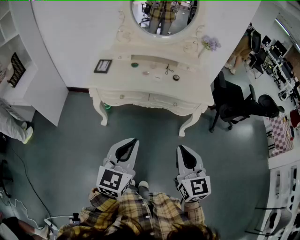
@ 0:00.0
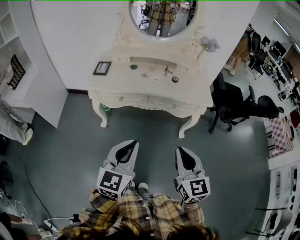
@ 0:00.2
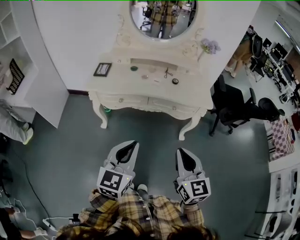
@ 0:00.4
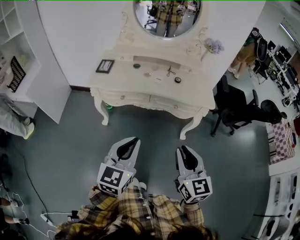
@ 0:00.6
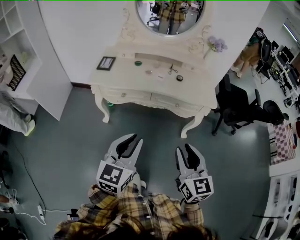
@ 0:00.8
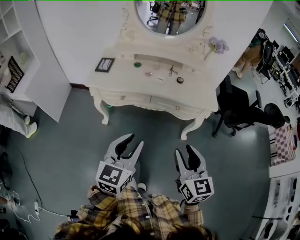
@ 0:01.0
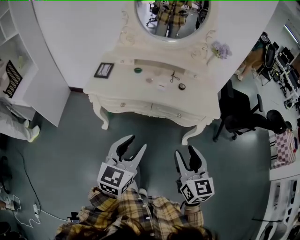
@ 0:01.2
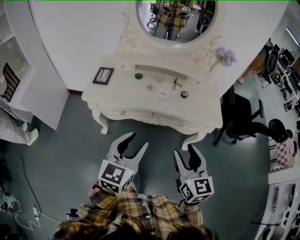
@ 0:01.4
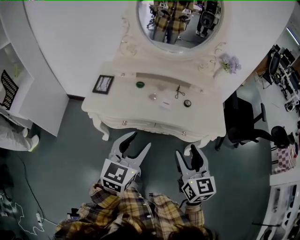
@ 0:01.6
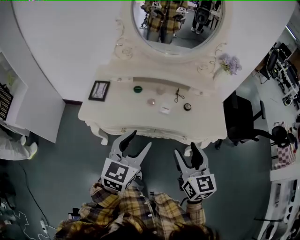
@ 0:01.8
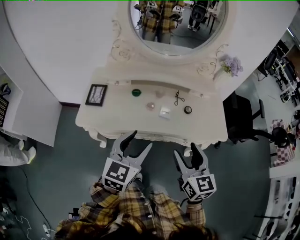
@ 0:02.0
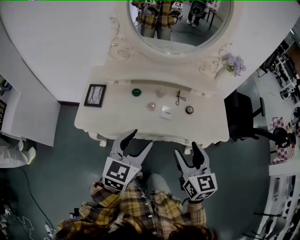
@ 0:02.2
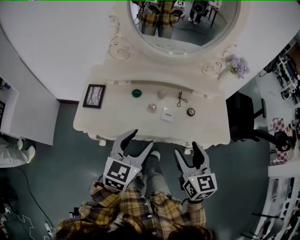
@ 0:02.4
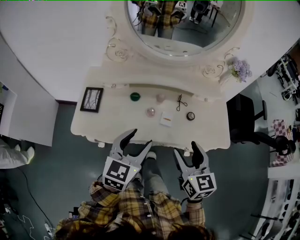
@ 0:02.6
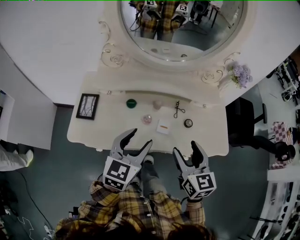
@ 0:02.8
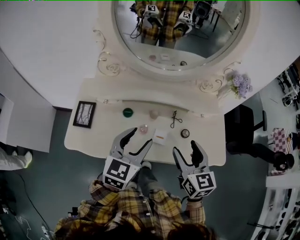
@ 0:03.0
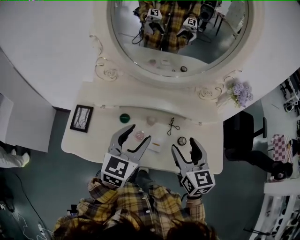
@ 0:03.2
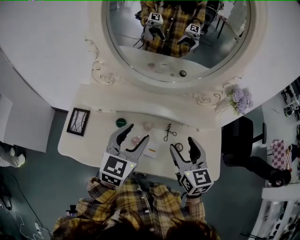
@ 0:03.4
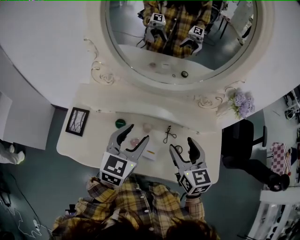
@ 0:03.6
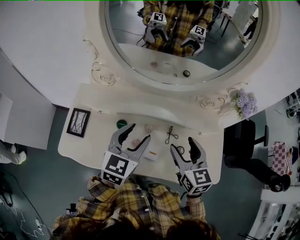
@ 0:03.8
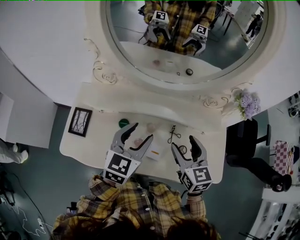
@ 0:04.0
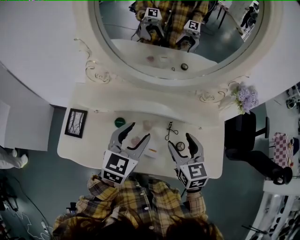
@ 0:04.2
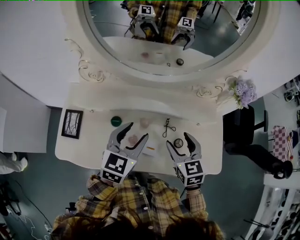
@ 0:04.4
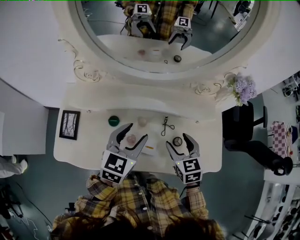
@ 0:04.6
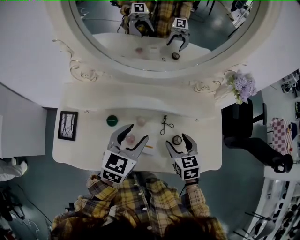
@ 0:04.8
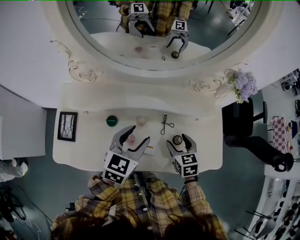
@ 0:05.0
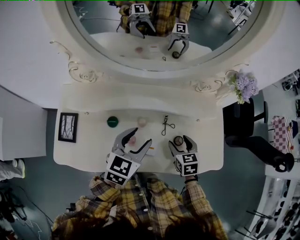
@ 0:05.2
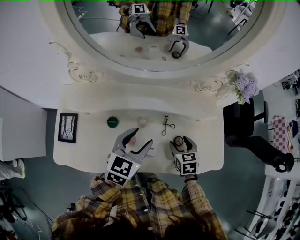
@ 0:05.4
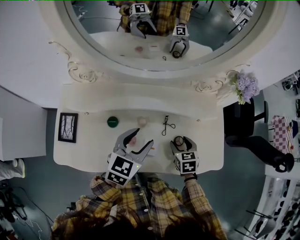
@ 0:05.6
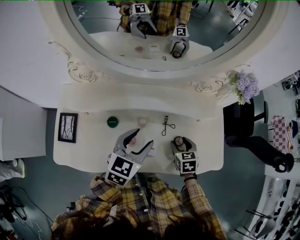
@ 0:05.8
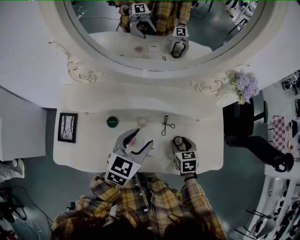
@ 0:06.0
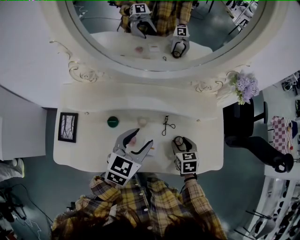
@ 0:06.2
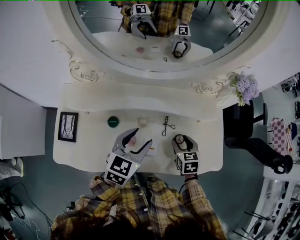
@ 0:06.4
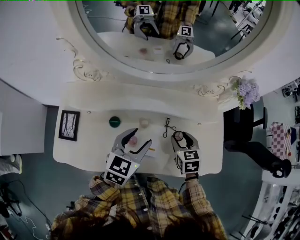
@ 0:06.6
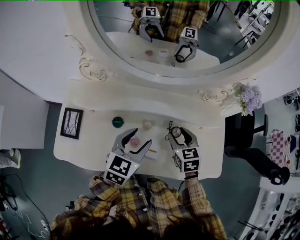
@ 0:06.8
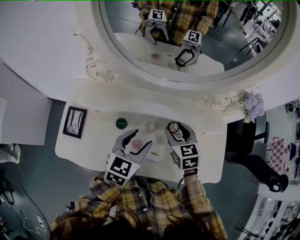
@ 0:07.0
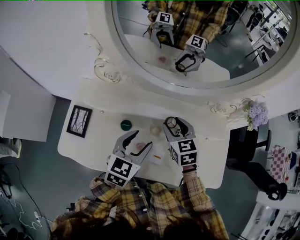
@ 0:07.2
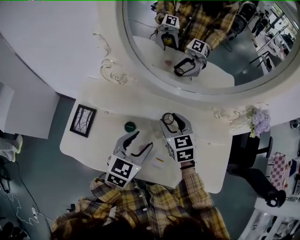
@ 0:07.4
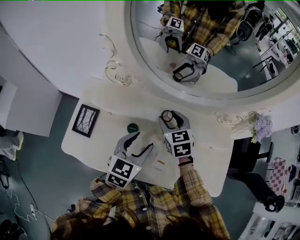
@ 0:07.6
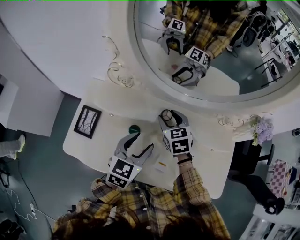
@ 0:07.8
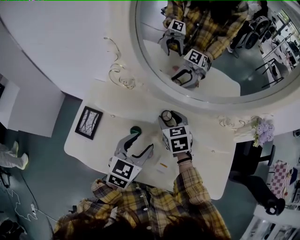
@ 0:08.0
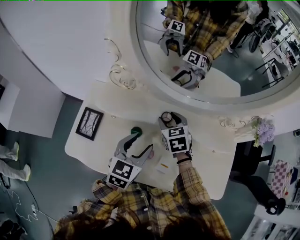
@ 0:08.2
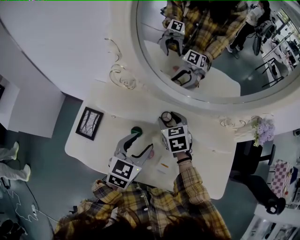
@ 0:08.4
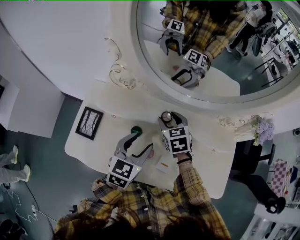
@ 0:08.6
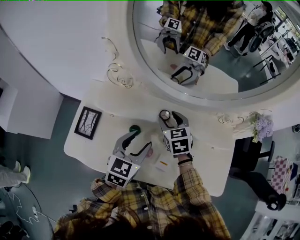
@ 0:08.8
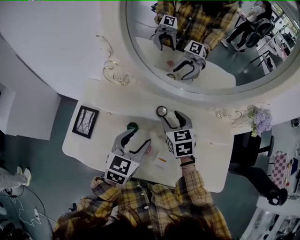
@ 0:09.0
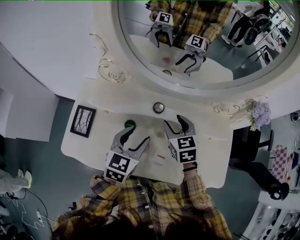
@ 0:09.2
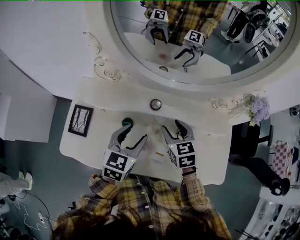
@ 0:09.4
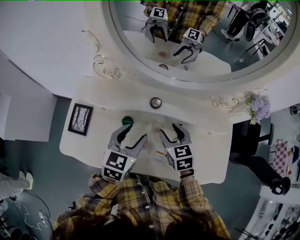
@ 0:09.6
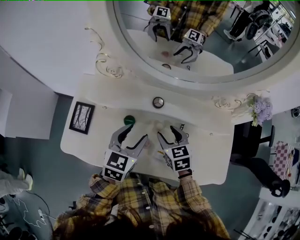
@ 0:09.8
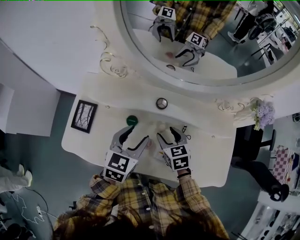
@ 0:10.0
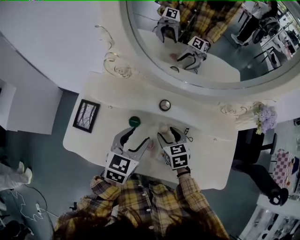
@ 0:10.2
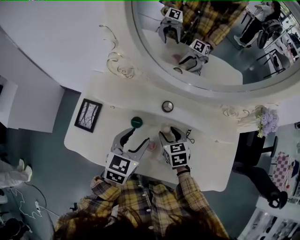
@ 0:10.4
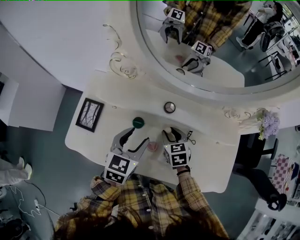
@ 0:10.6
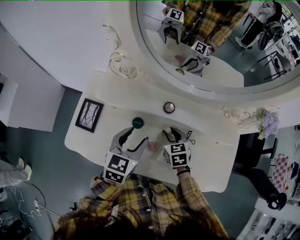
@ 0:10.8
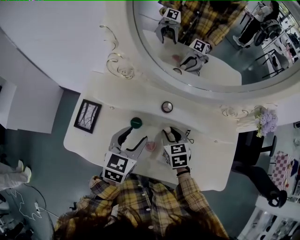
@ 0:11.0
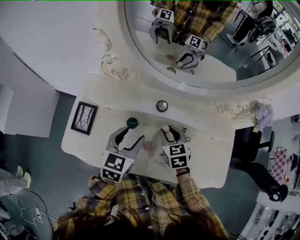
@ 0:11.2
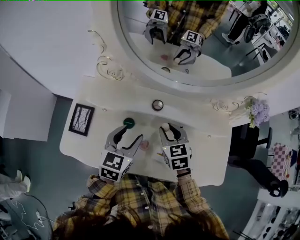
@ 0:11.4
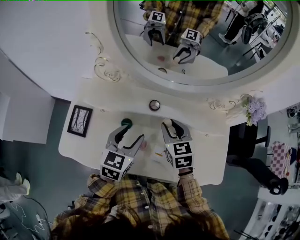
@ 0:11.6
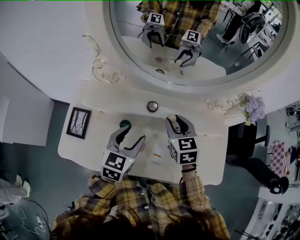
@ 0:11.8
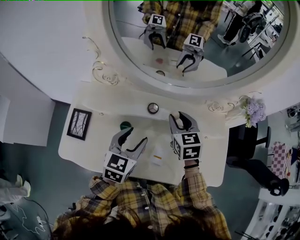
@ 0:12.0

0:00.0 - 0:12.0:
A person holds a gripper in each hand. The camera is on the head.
0:00.0 - 0:01.6: The two grippers go approximately 20 cm forward. The left gripper opens its fingers, while the right gripper opens up.
0:01.6 - 0:03.0: Both grippers move forward, some 25 cm.
0:03.0 - 0:04.4: The right gripper travels forward and downward by approximately 15 cm. The left gripper shifts roughly 10 cm forward.
0:04.4 - 0:06.0: The left gripper changes place by roughly 5 cm. The right gripper moves downward and to the right, about 15 cm, and rotates approximately 20 degrees.
0:06.0 - 0:07.6: The left gripper is displaced to the left by about 10 cm, while the right gripper goes some 30 cm to the left, forward and upward, and changes its angle by roughly 30 degrees.
0:07.6 - 0:09.0: The grippers make only small movements.
0:09.0 - 0:10.4: The right gripper moves downward and backward, about 15 cm.
0:10.4 - 0:12.0: The right gripper shifts roughly 15 cm upward, forward and to the right.

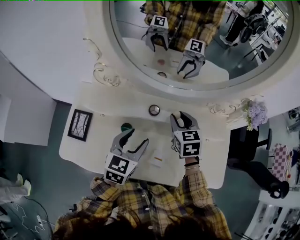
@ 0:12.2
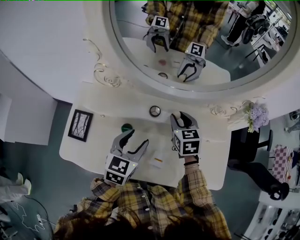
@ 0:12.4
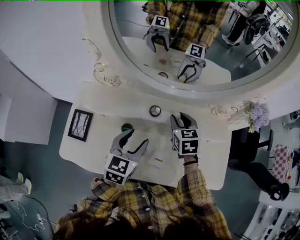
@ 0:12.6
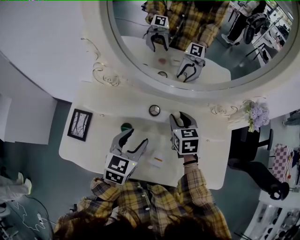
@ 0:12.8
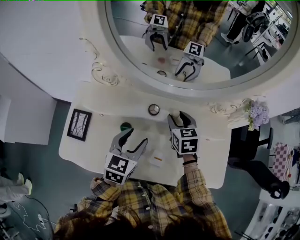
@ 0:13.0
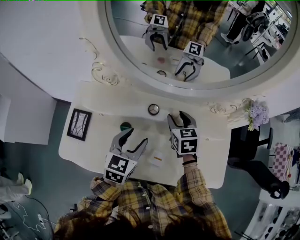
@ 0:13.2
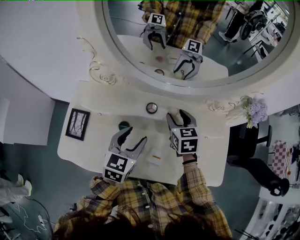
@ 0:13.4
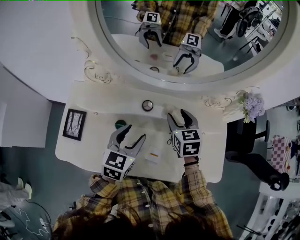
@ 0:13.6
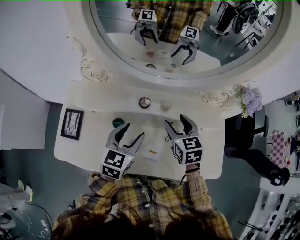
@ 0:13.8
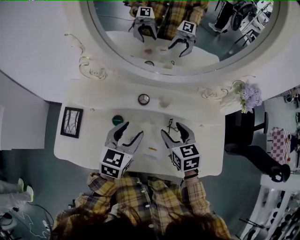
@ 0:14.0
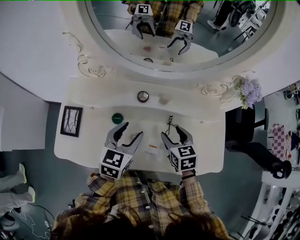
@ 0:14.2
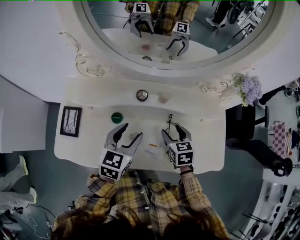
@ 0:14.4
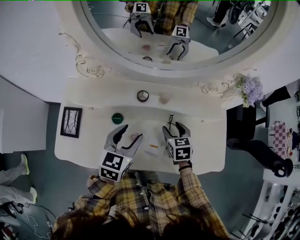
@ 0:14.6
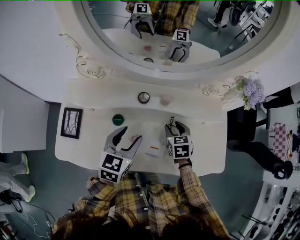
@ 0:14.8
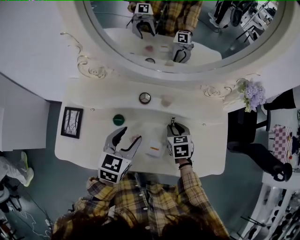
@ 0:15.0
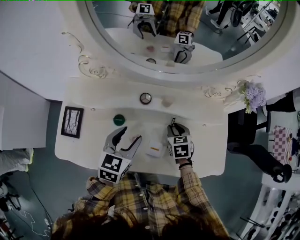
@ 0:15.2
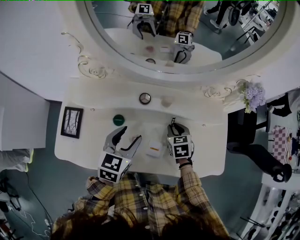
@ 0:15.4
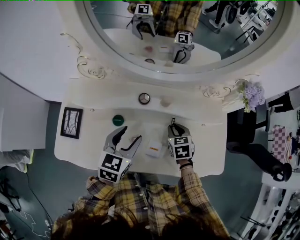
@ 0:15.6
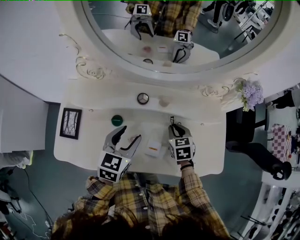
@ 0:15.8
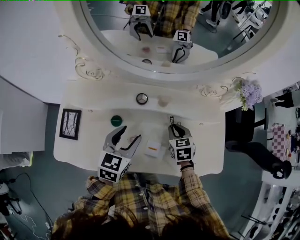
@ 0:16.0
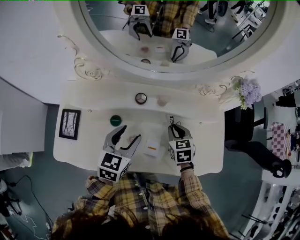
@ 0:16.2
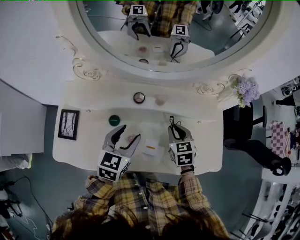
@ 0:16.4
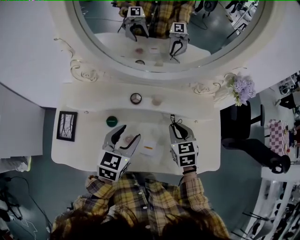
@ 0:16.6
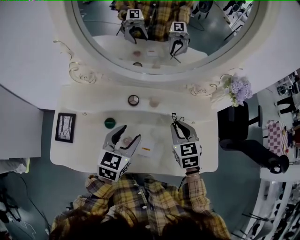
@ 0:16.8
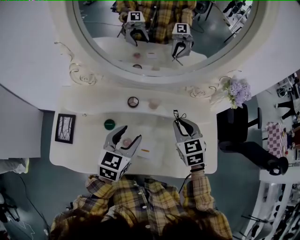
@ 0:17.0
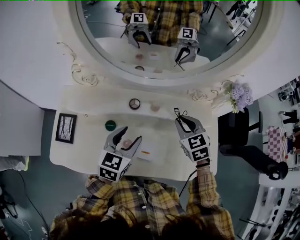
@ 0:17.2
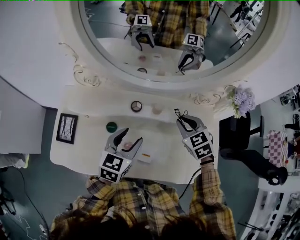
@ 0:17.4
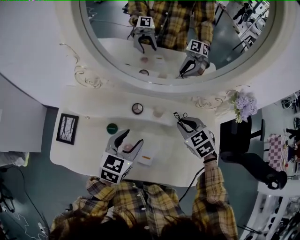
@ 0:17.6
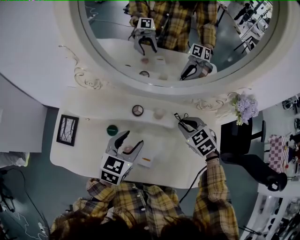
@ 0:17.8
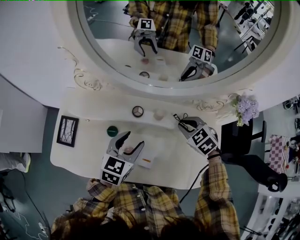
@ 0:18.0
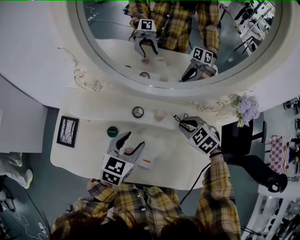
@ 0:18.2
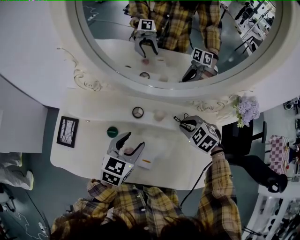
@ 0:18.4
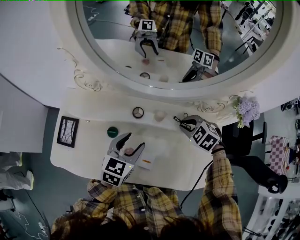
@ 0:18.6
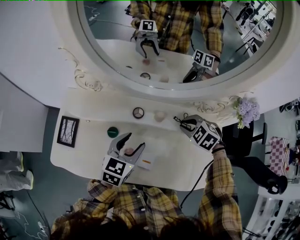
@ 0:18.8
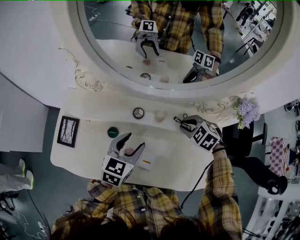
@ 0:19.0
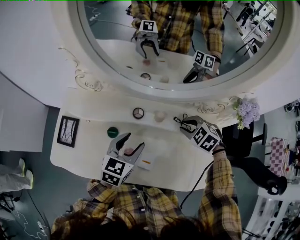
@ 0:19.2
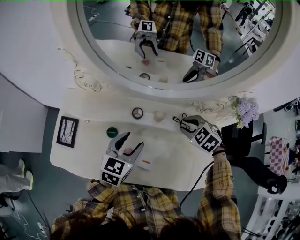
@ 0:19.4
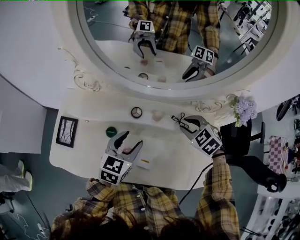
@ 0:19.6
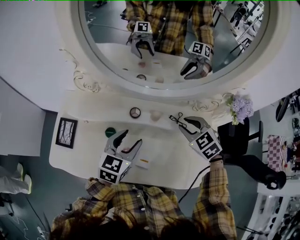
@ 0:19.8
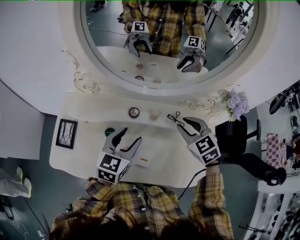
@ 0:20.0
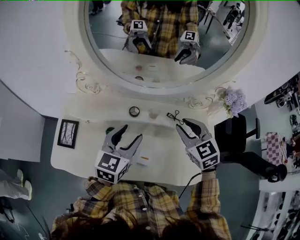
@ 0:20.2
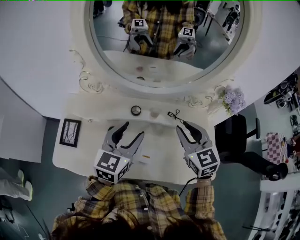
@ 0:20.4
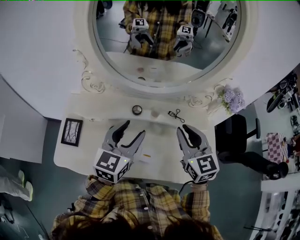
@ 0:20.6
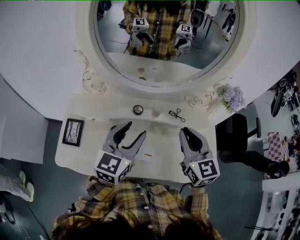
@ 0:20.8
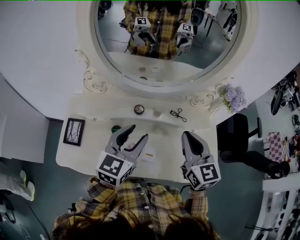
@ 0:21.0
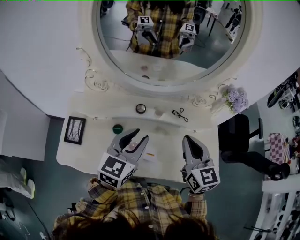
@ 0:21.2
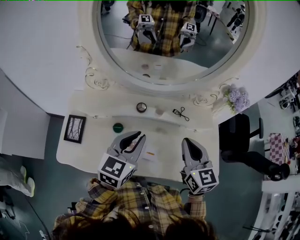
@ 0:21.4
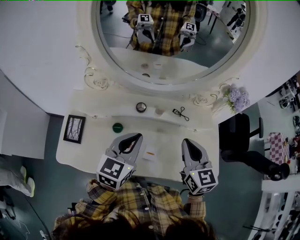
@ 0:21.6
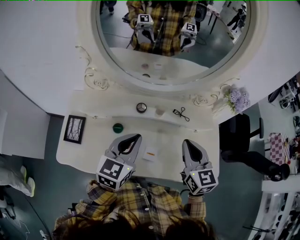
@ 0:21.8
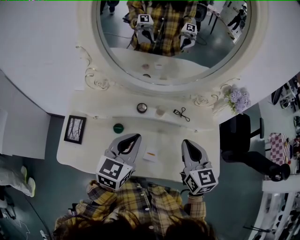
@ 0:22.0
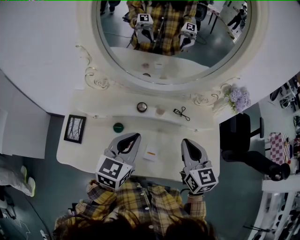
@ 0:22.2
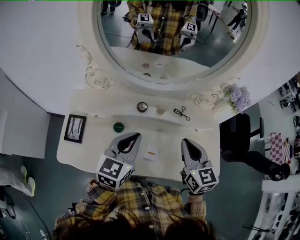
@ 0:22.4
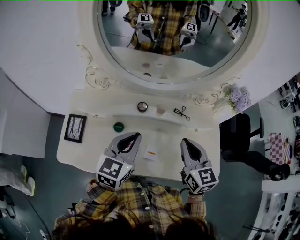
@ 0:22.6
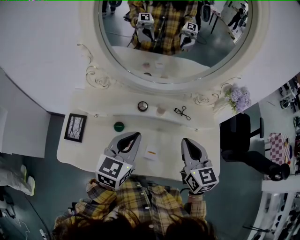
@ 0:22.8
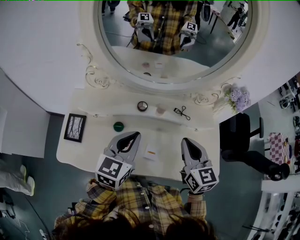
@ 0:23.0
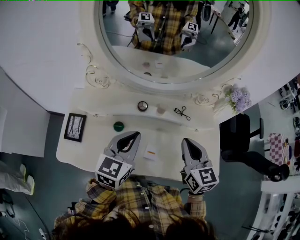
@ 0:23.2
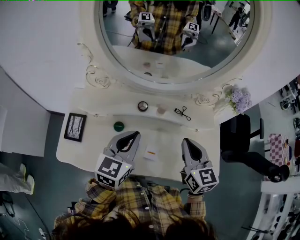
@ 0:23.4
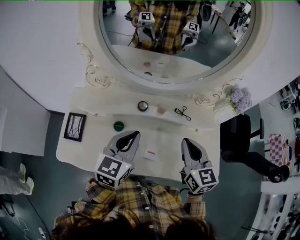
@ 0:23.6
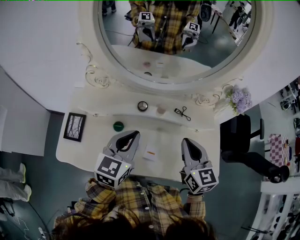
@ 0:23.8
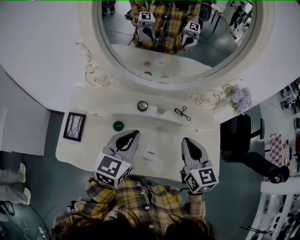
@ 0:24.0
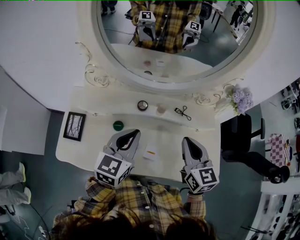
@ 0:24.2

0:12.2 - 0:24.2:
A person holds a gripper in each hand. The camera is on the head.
0:12.2 - 0:13.8: The right gripper heads backward, covering some 5 cm, and opens its fingers.
0:13.8 - 0:15.2: The right gripper moves downward, about 15 cm, and closes up.
0:15.2 - 0:16.6: The right gripper goes about 10 cm upward.
0:16.6 - 0:18.2: The right gripper shifts roughly 5 cm forward, and rotates about 40 degrees.
0:18.2 - 0:19.8: The right gripper goes approximately 5 cm upward.
0:19.8 - 0:21.2: The right gripper is displaced backward and upward by roughly 15 cm, angles its fingers upward, by about 40 degrees, and closes up; the left gripper moves upward and backward, roughly 10 cm, and closes up.
0:21.2 - 0:22.6: The left gripper closes its fingers.
0:22.6 - 0:24.2: Both grippers stay put.
